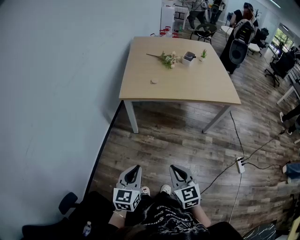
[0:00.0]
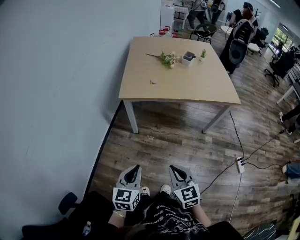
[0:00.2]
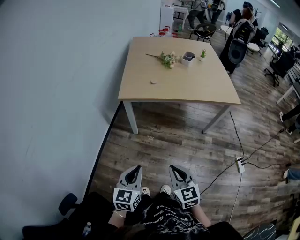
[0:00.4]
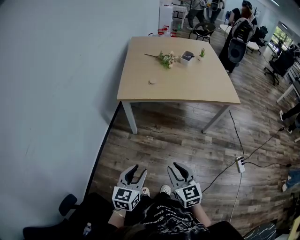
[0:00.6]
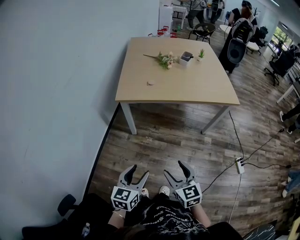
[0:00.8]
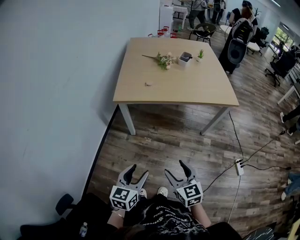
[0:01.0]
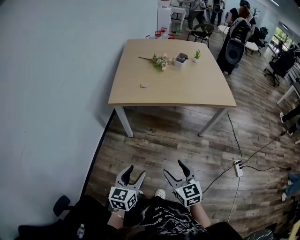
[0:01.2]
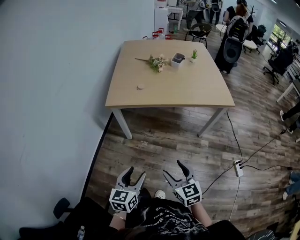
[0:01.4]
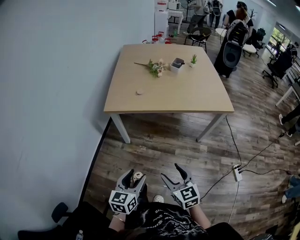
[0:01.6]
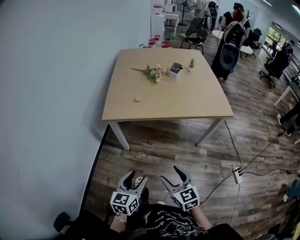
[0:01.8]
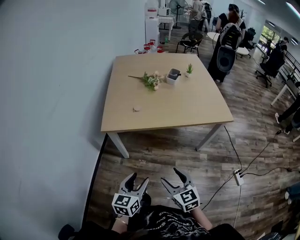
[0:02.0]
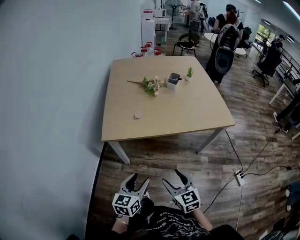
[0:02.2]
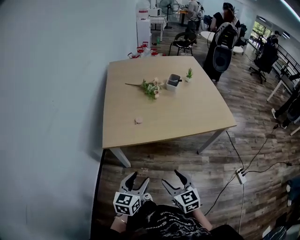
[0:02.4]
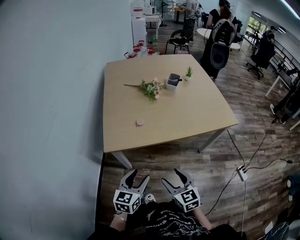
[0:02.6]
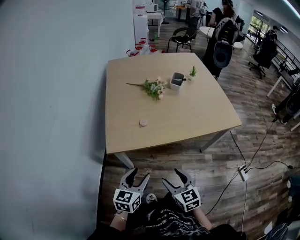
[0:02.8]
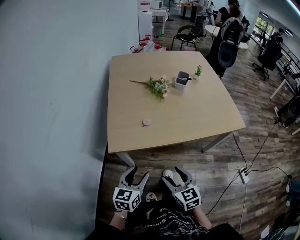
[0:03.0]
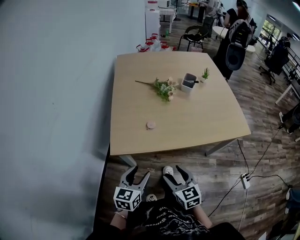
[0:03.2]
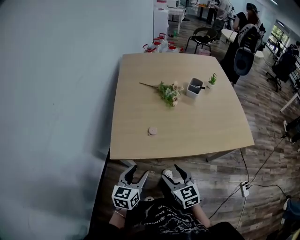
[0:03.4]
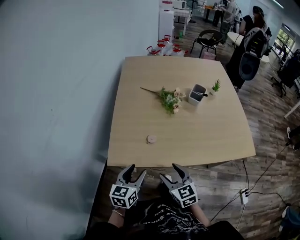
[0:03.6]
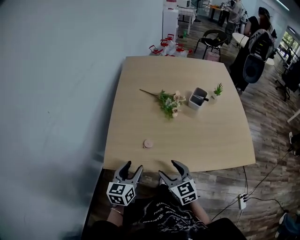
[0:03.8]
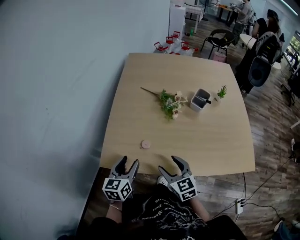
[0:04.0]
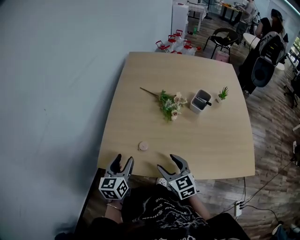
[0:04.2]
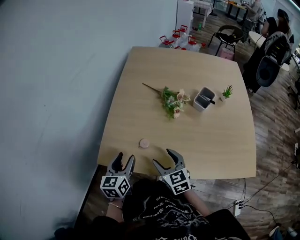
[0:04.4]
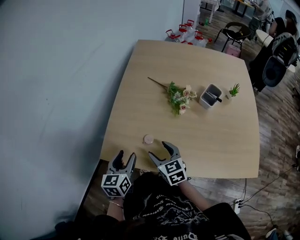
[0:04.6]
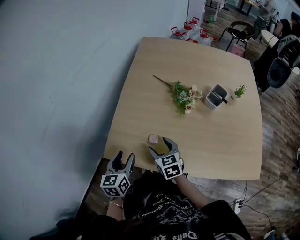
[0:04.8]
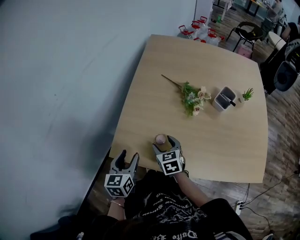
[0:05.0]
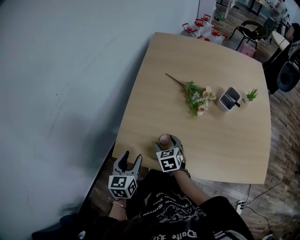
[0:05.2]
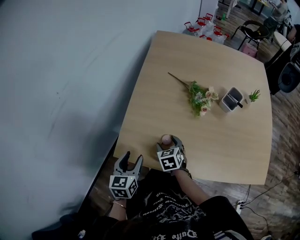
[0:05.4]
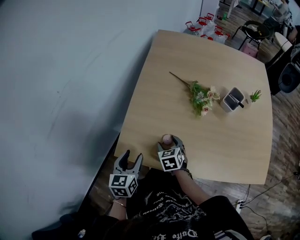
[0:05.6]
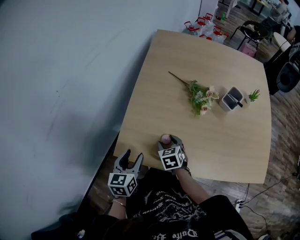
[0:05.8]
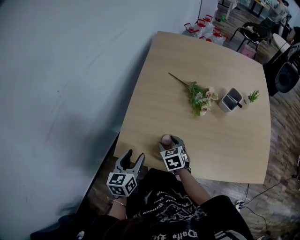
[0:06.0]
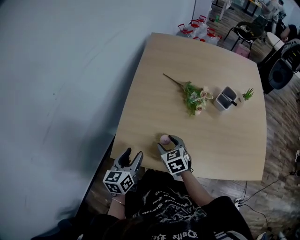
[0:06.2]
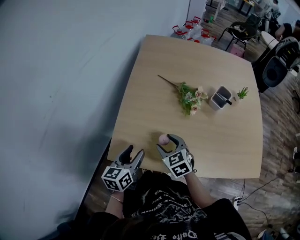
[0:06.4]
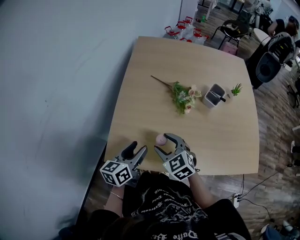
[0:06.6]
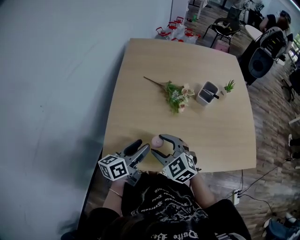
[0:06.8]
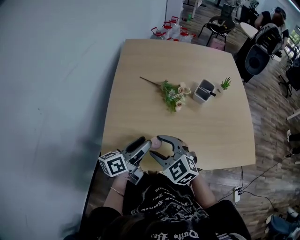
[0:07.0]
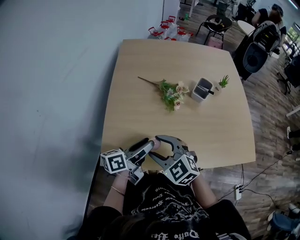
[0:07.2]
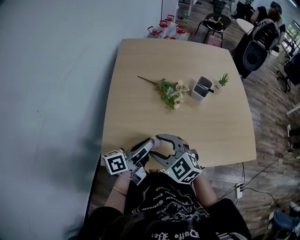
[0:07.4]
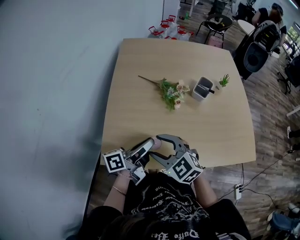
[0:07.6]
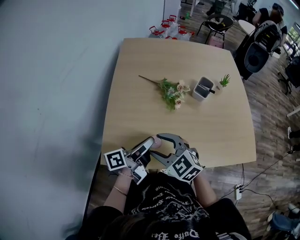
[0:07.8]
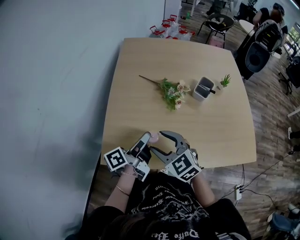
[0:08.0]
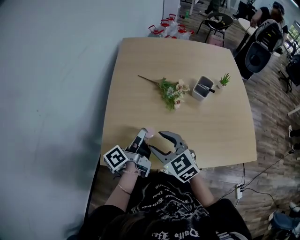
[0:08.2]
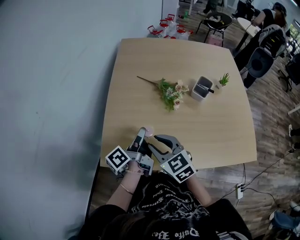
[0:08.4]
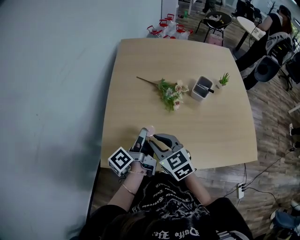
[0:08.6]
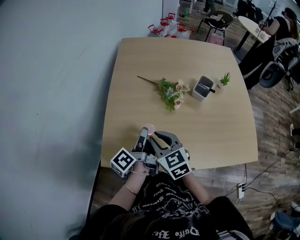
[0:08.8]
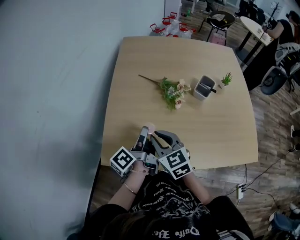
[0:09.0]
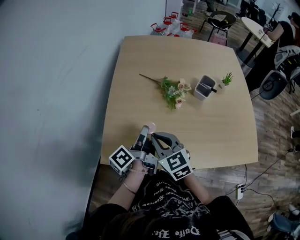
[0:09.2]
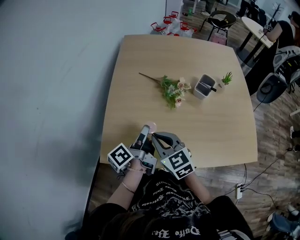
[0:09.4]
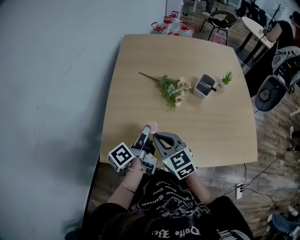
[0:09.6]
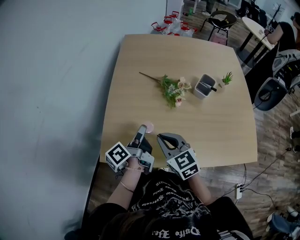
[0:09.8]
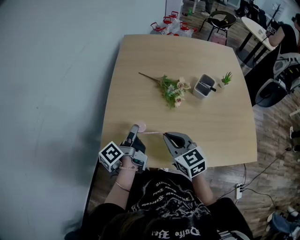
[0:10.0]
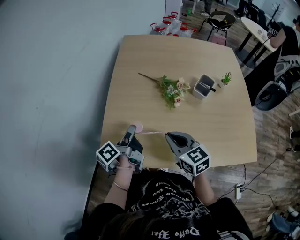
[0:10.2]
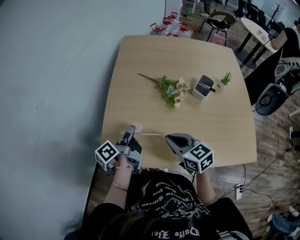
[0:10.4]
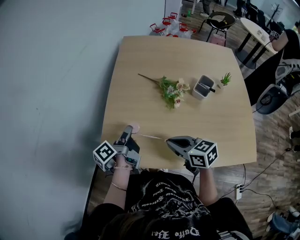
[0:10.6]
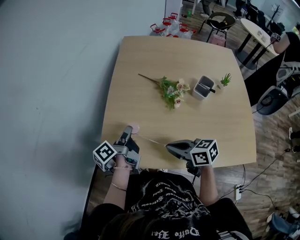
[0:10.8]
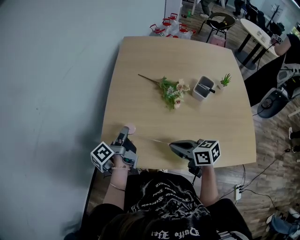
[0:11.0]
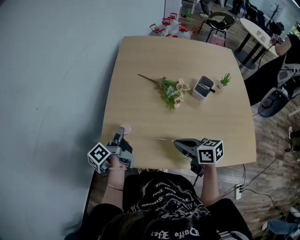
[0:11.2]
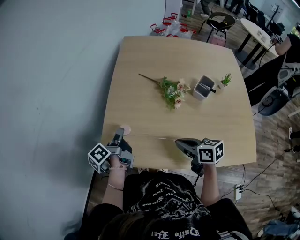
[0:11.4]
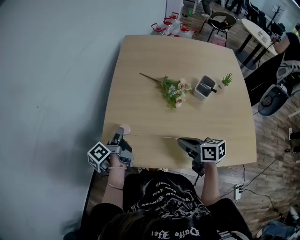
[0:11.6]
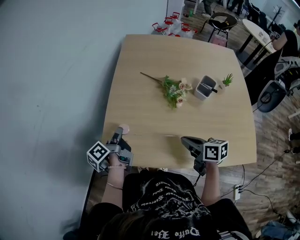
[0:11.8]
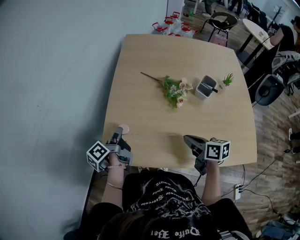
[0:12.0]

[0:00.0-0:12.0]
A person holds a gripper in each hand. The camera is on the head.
0:00.0 to 0:01.6: Both grippers travel together to the right and forward, roughly 10 cm. The left gripper opens, while the right gripper opens its fingers.
0:01.6 to 0:03.0: The right gripper goes about 25 cm forward and to the left. Meanwhile the left gripper moves forward, roughly 30 cm.
0:03.0 to 0:04.4: The left gripper shifts by about 20 cm, and changes its angle by roughly 30 degrees. Meanwhile the right gripper moves roughly 30 cm, and rotates about 20 degrees.
0:04.4 to 0:06.0: The right gripper is displaced downward, forward and to the left by approximately 15 cm, and changes its angle by some 20 degrees. Meanwhile the left gripper shifts some 5 cm to the left.
0:06.0 to 0:07.6: The left gripper moves to the right and upward, approximately 15 cm, points its fingers about 30 degrees further upward, and closes its fingers, while the right gripper heads upward, covering roughly 15 cm, and changes its angle by some 40 degrees.
0:07.6 to 0:09.0: The grippers both shift forward by roughly 5 cm. The right gripper changes its angle by roughly 30 degrees, and closes its fingers. Meanwhile the left gripper swivels approximately 40 degrees.
0:09.0 to 0:10.4: The left gripper goes about 5 cm to the left, while the right gripper goes some 5 cm to the right.
0:10.4 to 0:12.0: The right gripper travels to the right by some 10 cm, and swivels approximately 30 degrees; the left gripper is displaced to the left by roughly 5 cm.

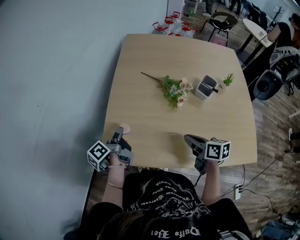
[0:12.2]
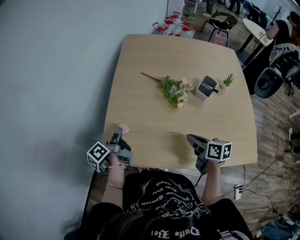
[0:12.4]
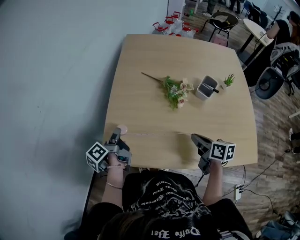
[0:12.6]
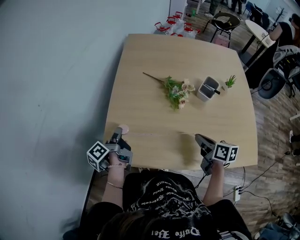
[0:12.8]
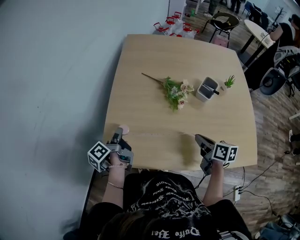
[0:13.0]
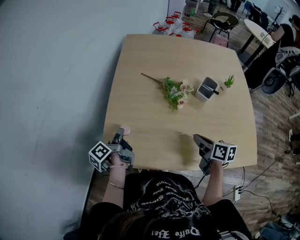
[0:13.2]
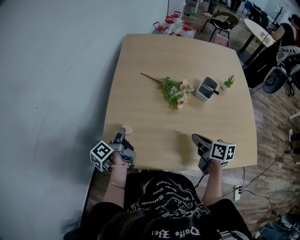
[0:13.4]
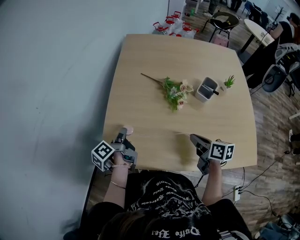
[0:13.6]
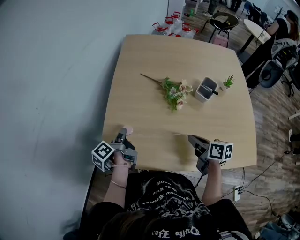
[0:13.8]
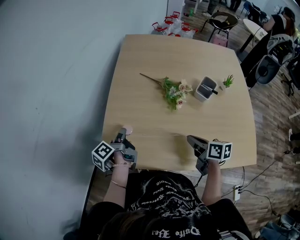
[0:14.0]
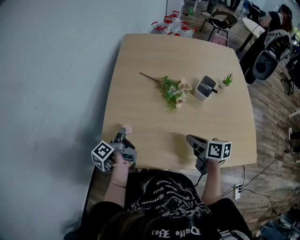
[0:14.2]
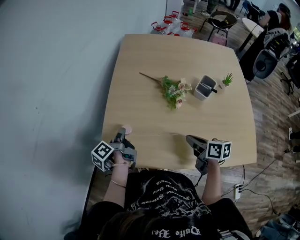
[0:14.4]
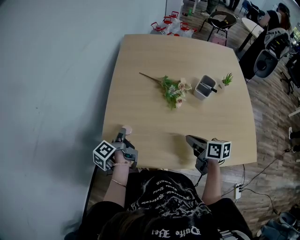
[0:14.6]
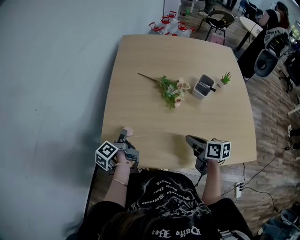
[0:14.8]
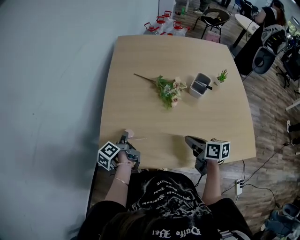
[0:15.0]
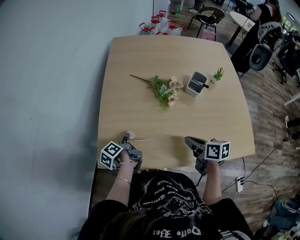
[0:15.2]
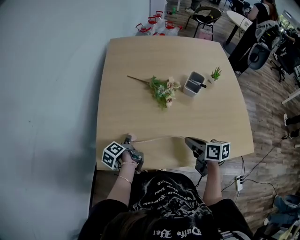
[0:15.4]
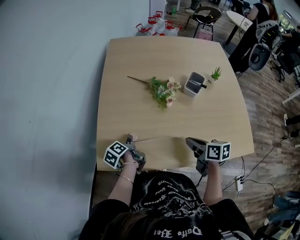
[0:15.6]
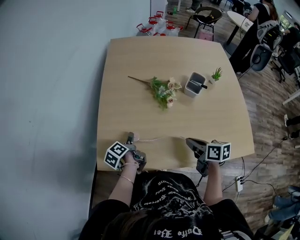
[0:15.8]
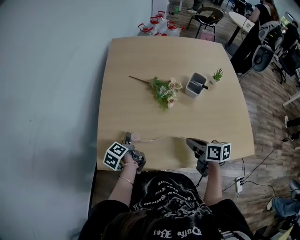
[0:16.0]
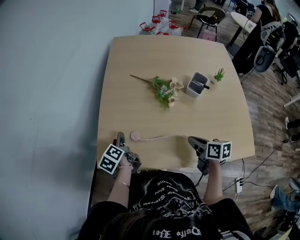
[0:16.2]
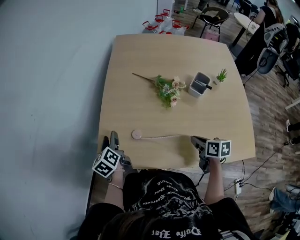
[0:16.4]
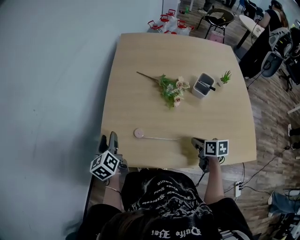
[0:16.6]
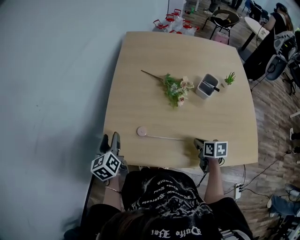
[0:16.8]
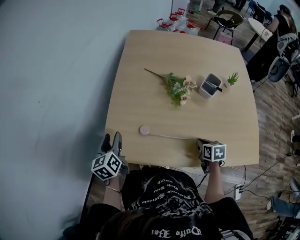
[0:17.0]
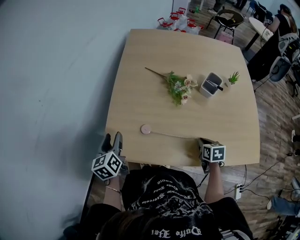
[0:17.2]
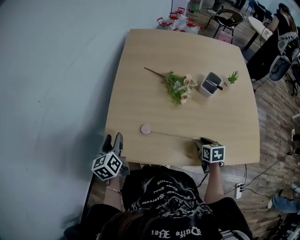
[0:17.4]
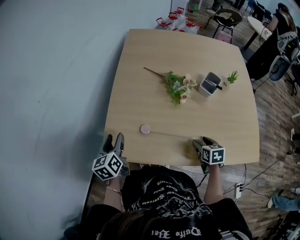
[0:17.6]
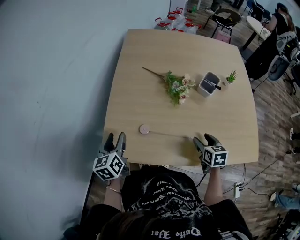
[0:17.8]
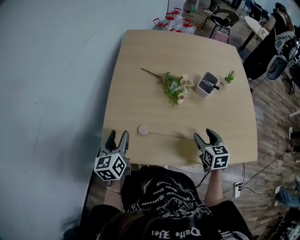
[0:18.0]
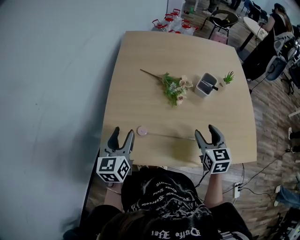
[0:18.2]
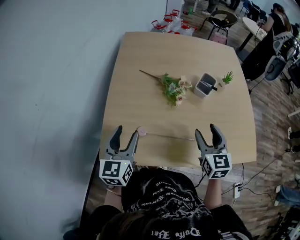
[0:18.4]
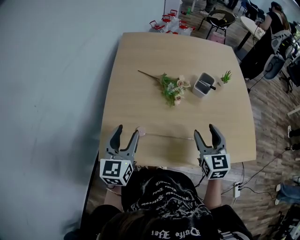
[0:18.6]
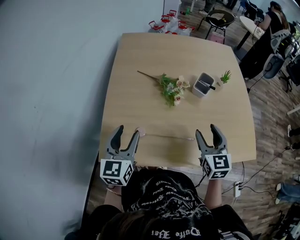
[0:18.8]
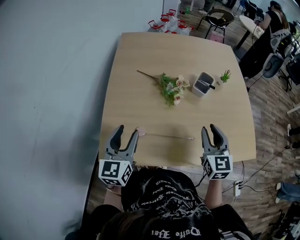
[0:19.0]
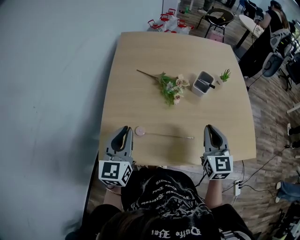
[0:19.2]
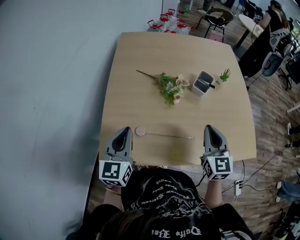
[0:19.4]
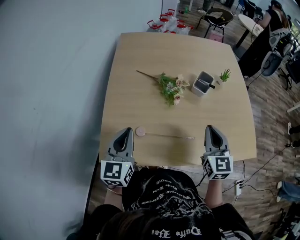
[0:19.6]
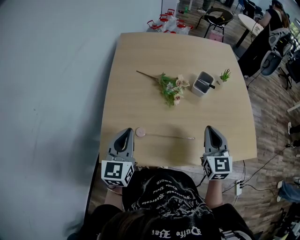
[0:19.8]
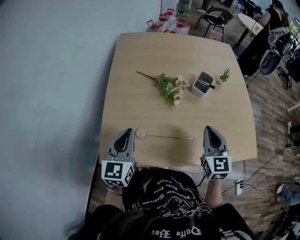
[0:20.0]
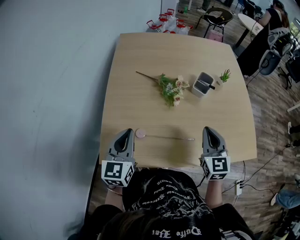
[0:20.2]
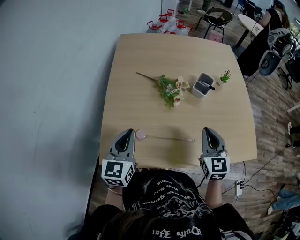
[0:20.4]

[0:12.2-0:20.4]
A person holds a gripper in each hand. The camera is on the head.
0:12.2 to 0:13.8: There are only small adjustments of the grippers.
0:13.8 to 0:15.4: The left gripper moves downward, some 10 cm.
0:15.4 to 0:17.2: The right gripper goes roughly 10 cm downward, and rotates some 30 degrees. The left gripper moves upward and to the left, some 15 cm, twists about 50 degrees clockwise, seen from behind, and opens its fingers.
0:17.2 to 0:18.8: The right gripper moves upward, approximately 20 cm, angles its fingers upward, by some 40 degrees, and opens up; the left gripper heads to the right and upward, covering some 15 cm, and changes its angle by some 30 degrees.
0:18.8 to 0:20.4: The left gripper closes its fingers, while the right gripper closes its fingers.

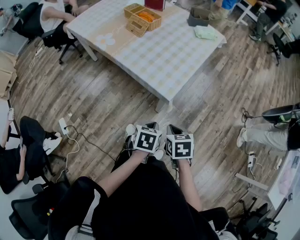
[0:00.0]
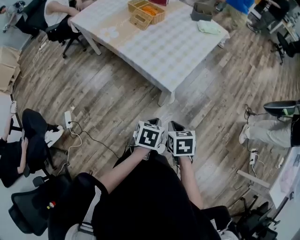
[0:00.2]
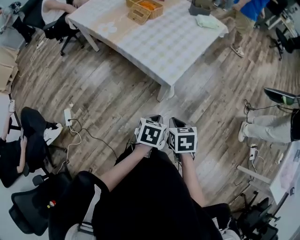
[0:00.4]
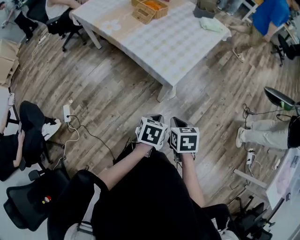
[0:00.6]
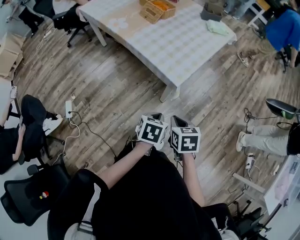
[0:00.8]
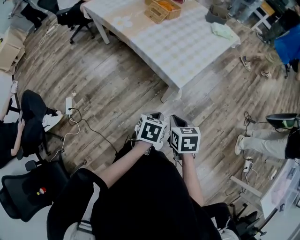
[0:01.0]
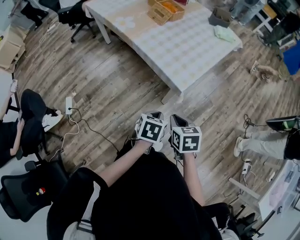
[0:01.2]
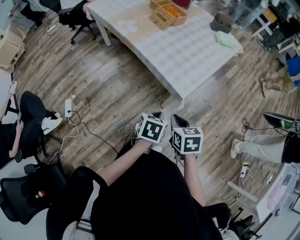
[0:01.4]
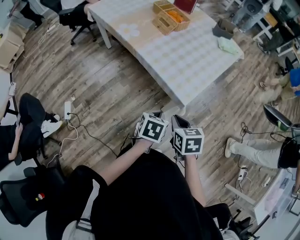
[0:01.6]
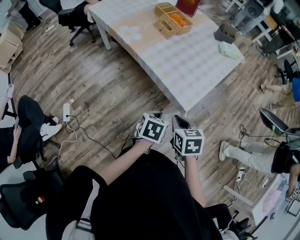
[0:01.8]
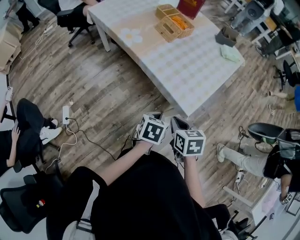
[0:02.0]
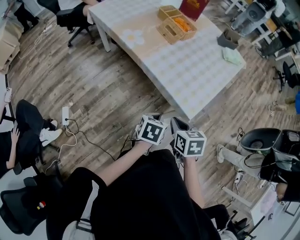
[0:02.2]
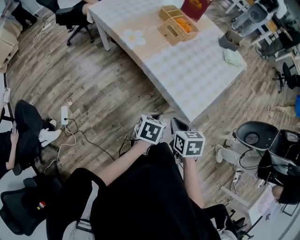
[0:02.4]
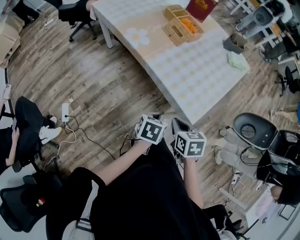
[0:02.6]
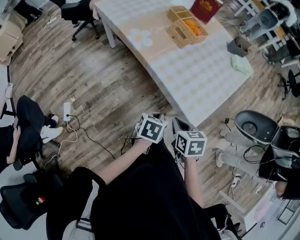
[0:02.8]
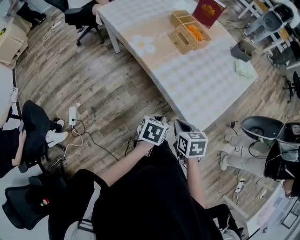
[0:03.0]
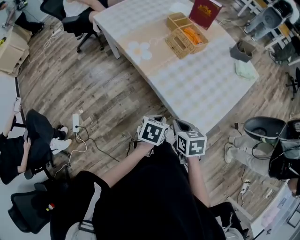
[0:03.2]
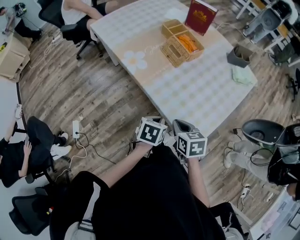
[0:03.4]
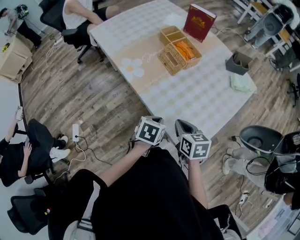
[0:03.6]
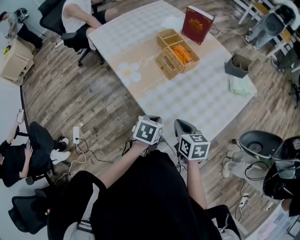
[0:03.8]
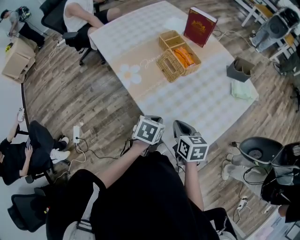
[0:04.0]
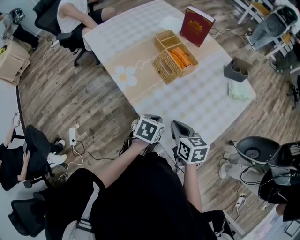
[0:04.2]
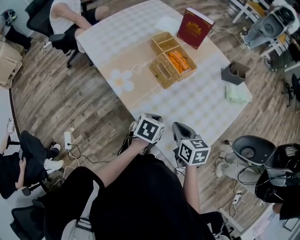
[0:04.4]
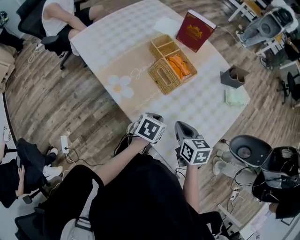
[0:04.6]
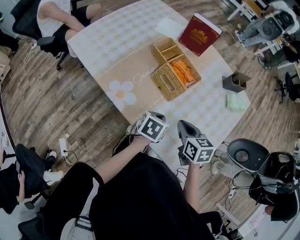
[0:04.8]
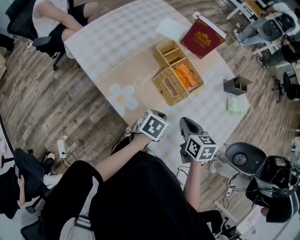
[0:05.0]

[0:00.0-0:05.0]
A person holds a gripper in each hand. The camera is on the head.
0:00.0 to 0:01.6: Both grippers move to the left, roughly 5 cm.
0:01.6 to 0:03.4: The two grippers go about 20 cm forward.
0:03.4 to 0:05.0: Both grippers travel together forward, roughly 25 cm.
